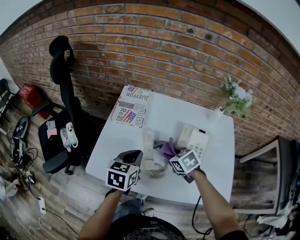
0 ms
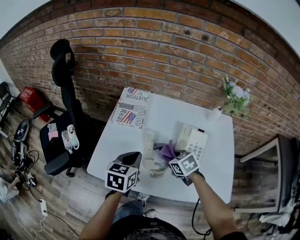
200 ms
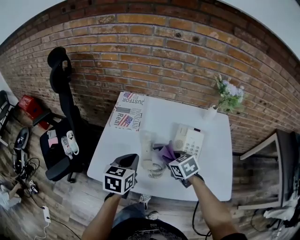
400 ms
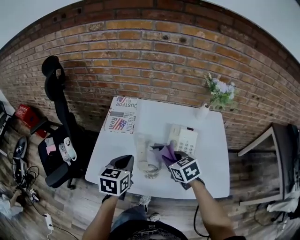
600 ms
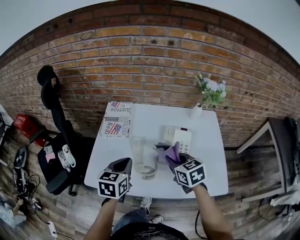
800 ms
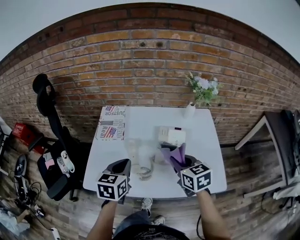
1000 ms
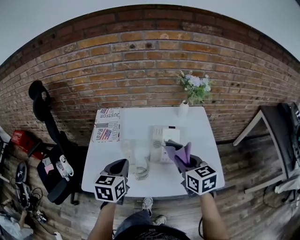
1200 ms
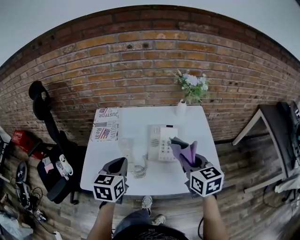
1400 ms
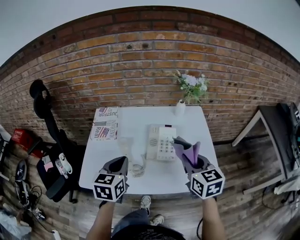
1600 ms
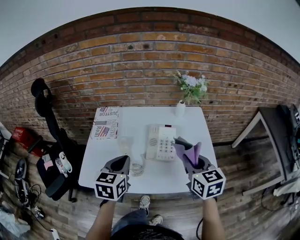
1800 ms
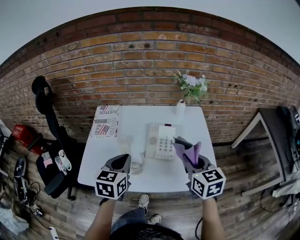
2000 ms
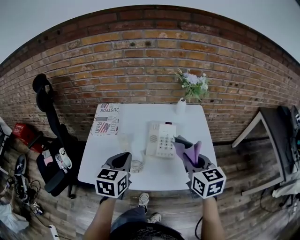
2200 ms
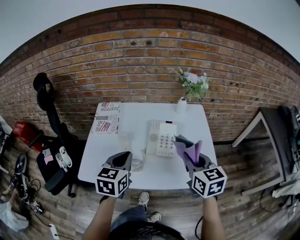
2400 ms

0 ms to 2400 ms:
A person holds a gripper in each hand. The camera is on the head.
0 ms to 1200 ms: The right gripper shifts some 25 cm upward, to the right and backward, and turns by some 40 degrees; the left gripper travels upward by some 5 cm.
1200 ms to 2400 ms: The right gripper moves to the right, some 5 cm. The left gripper ends up about 5 cm from where it was.

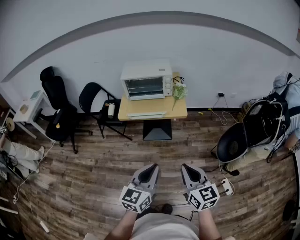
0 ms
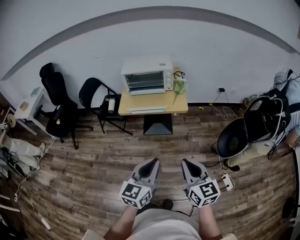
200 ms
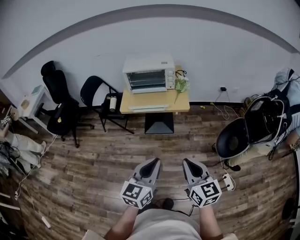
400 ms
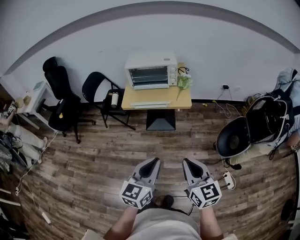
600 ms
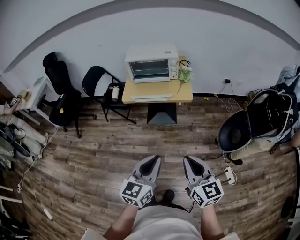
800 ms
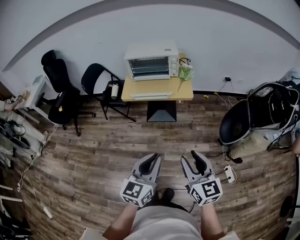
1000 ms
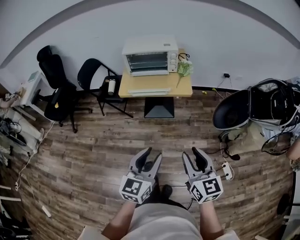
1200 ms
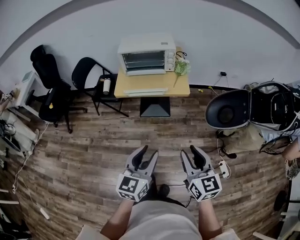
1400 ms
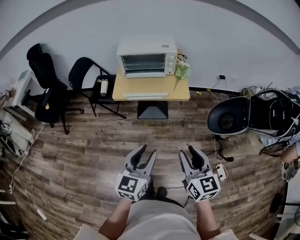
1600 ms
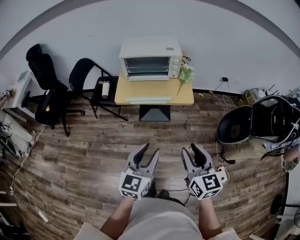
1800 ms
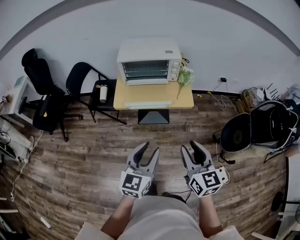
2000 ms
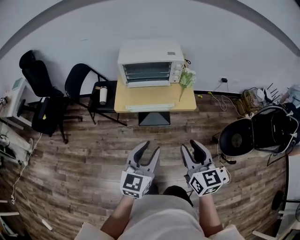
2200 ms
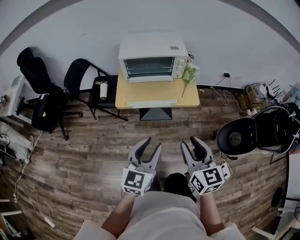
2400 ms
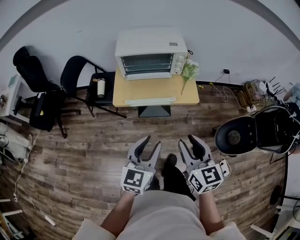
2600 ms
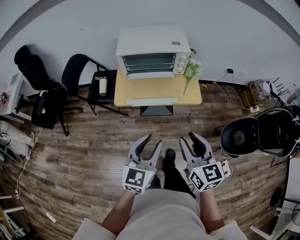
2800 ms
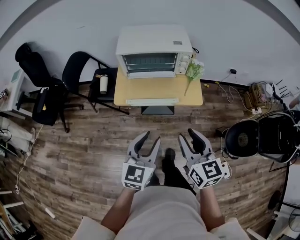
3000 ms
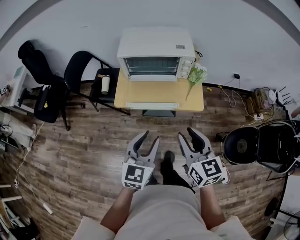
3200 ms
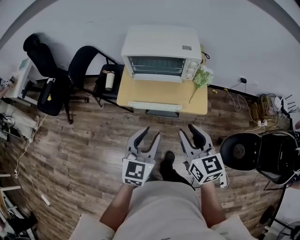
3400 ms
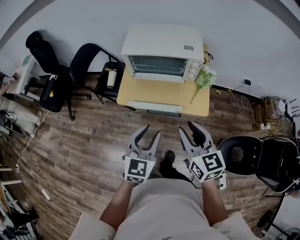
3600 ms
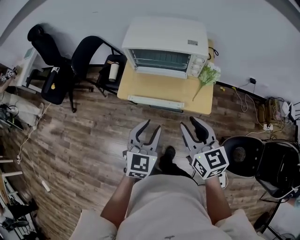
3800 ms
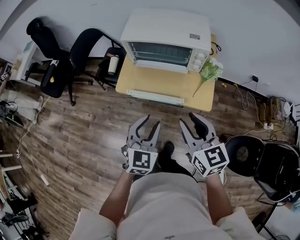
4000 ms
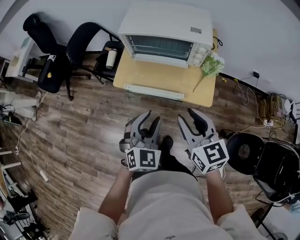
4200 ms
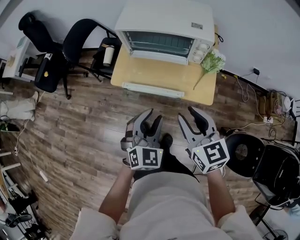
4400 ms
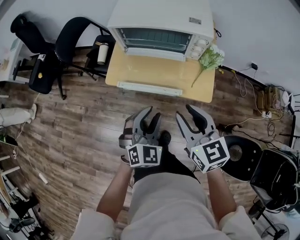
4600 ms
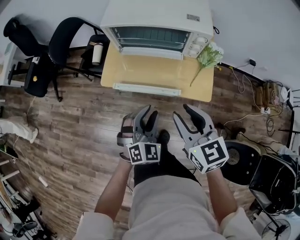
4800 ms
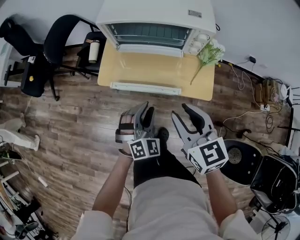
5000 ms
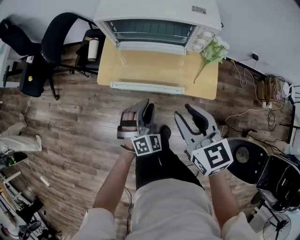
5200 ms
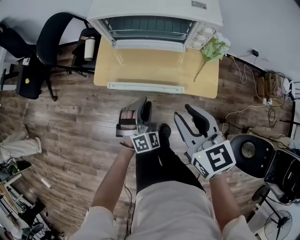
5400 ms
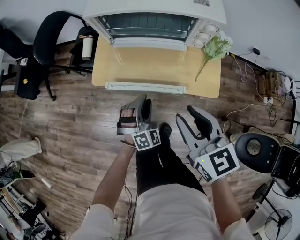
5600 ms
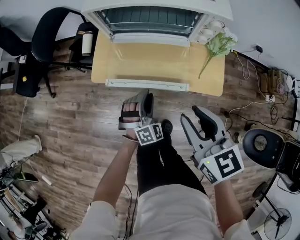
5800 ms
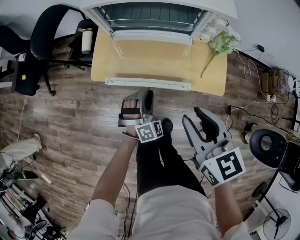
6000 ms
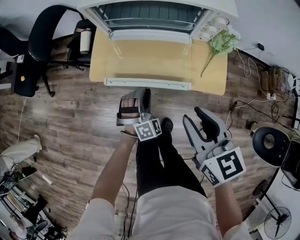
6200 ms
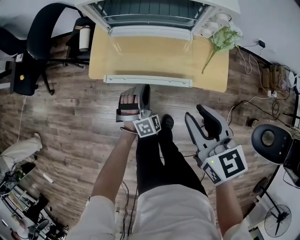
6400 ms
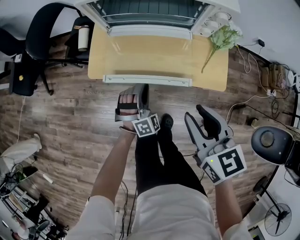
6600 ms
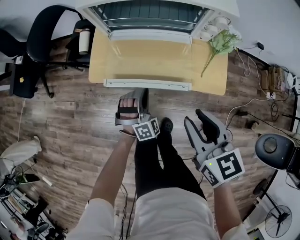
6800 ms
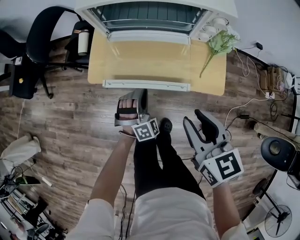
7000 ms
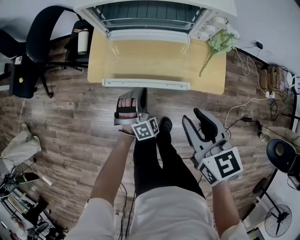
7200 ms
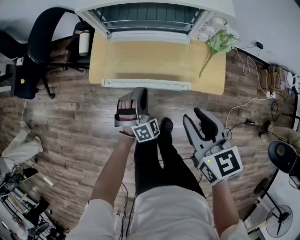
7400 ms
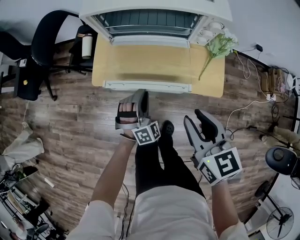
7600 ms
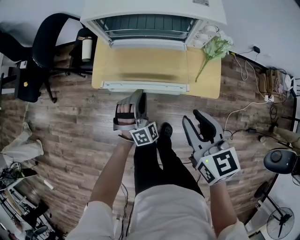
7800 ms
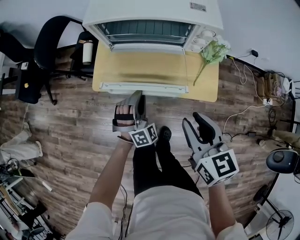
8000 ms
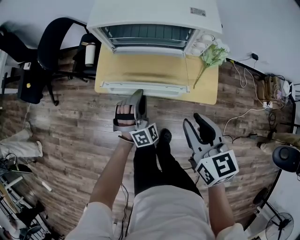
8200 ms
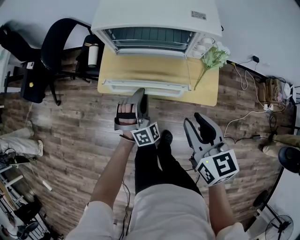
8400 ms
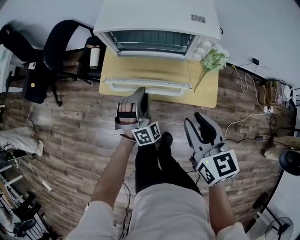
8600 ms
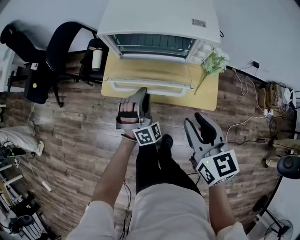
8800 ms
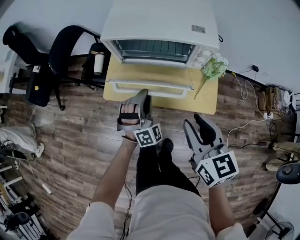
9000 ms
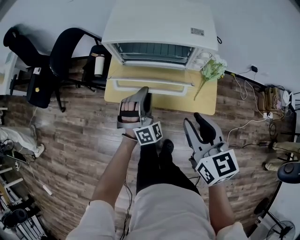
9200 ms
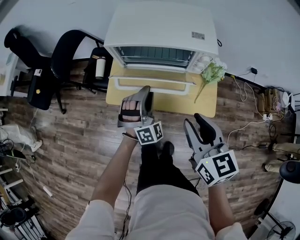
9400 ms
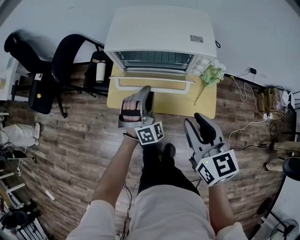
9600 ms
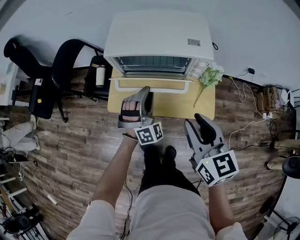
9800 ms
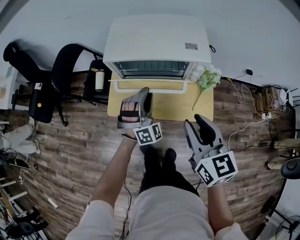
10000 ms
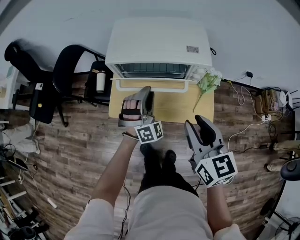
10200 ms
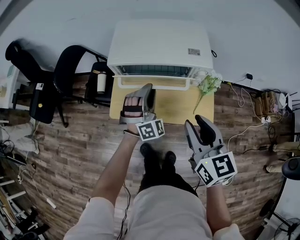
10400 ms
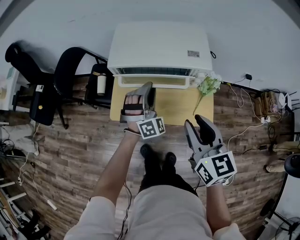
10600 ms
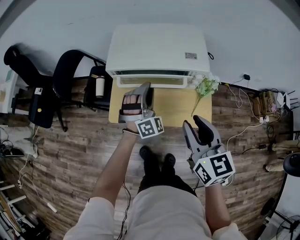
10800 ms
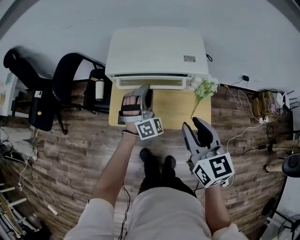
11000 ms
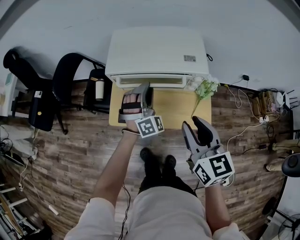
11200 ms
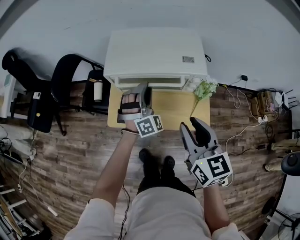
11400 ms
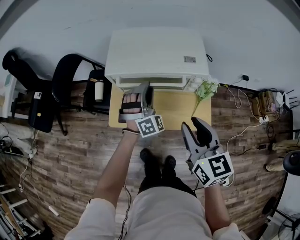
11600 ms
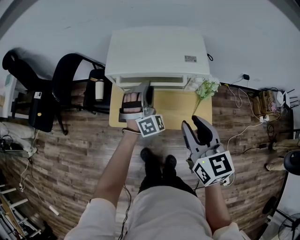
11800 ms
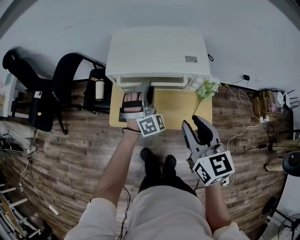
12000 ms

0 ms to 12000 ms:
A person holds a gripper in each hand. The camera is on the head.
0 ms to 1600 ms: The right gripper moves forward, some 10 cm, and opens its fingers, while the left gripper is displaced forward and to the left by approximately 10 cm, and opens.
1600 ms to 3000 ms: The grippers both shift forward by approximately 20 cm.
3000 ms to 4400 ms: The left gripper moves forward, downward and to the right, roughly 15 cm, and swivels roughly 30 degrees. Meanwhile the right gripper travels forward and downward by some 15 cm.
4400 ms to 6000 ms: The right gripper travels downward by roughly 10 cm; the left gripper travels downward and forward by some 25 cm, and turns by some 30 degrees.
6000 ms to 7600 ms: The grippers stay close to where they were, moving slightly.
7600 ms to 9000 ms: Both grippers travel together upward, about 10 cm.
9000 ms to 10400 ms: The left gripper shifts about 10 cm forward and upward, while the right gripper travels upward by roughly 5 cm.
10400 ms to 12000 ms: The grippers make only small movements.

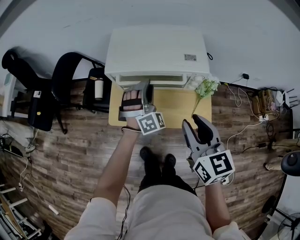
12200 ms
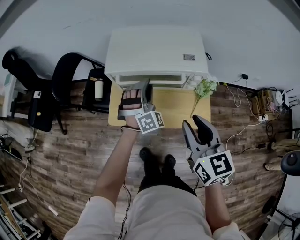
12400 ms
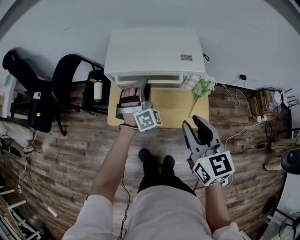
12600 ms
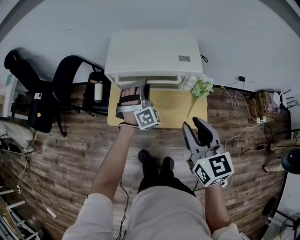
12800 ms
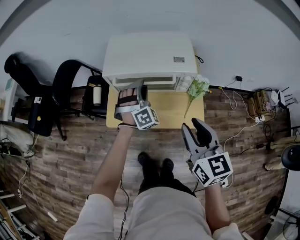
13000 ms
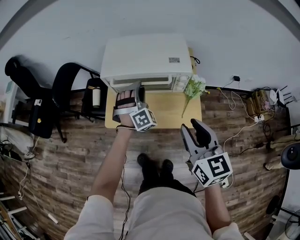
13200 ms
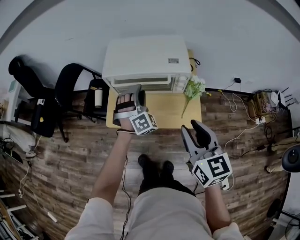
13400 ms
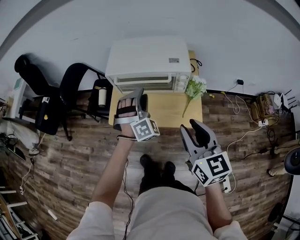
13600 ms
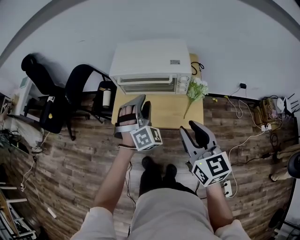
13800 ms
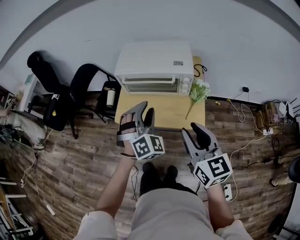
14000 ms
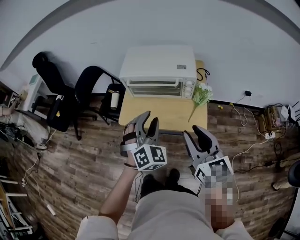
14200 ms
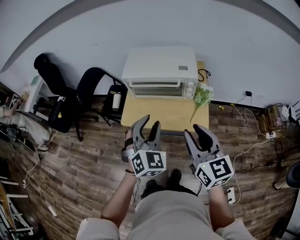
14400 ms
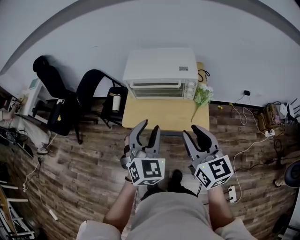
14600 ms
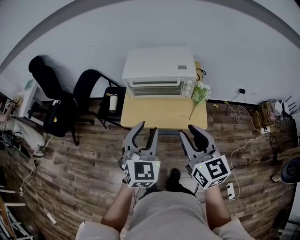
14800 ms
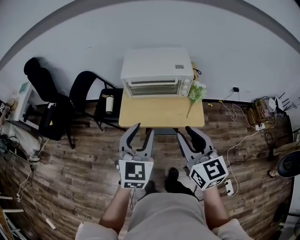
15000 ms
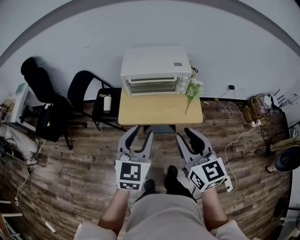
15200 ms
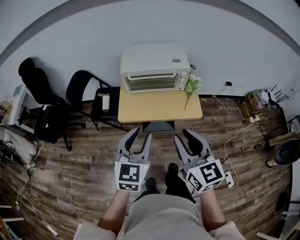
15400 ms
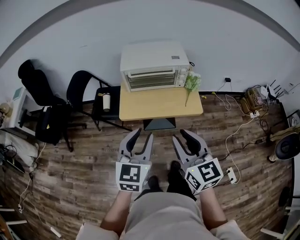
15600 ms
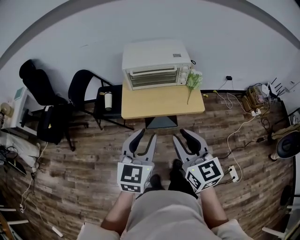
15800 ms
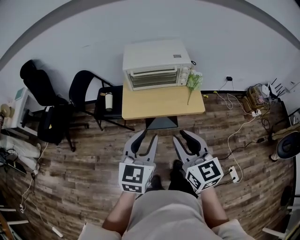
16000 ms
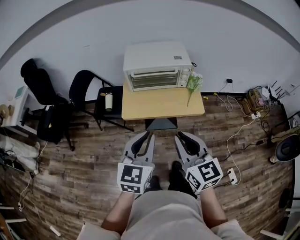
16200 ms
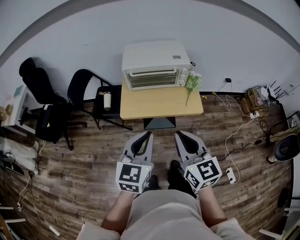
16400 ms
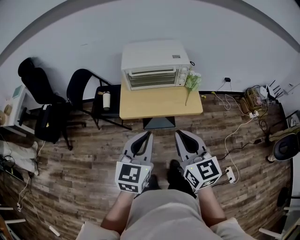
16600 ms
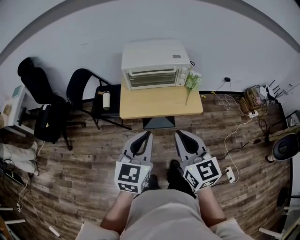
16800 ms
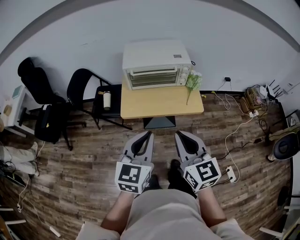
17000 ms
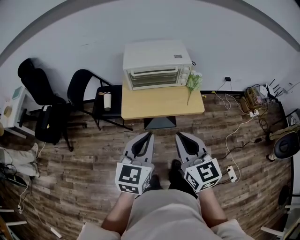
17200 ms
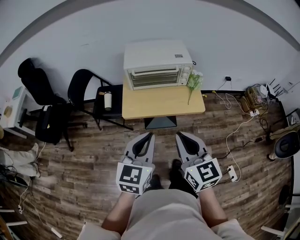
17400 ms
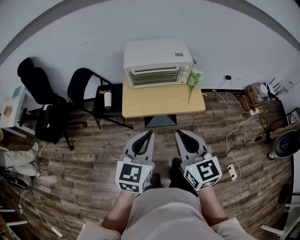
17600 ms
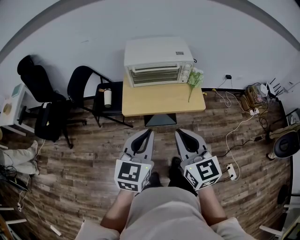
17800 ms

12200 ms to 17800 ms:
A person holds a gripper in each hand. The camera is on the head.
12200 ms to 13600 ms: The right gripper is displaced backward by roughly 10 cm. Meanwhile the left gripper heads backward and upward, covering about 10 cm.
13600 ms to 15000 ms: The left gripper is displaced backward, upward and to the left by roughly 25 cm, and rolls counterclockwise, seen from behind, by roughly 50 degrees; the right gripper shifts about 15 cm to the left, backward and upward.
15000 ms to 16400 ms: The left gripper heads backward, covering some 10 cm, and closes its fingers, while the right gripper moves backward and to the left, some 10 cm, and closes up.
16400 ms to 17800 ms: There are only small adjustments of the grippers.

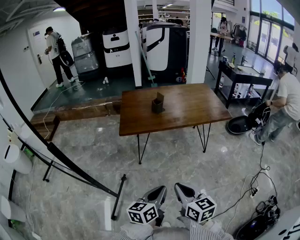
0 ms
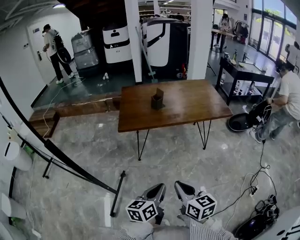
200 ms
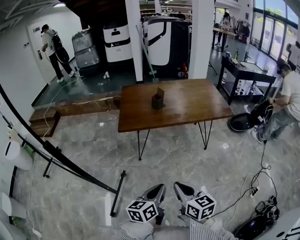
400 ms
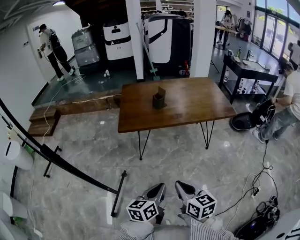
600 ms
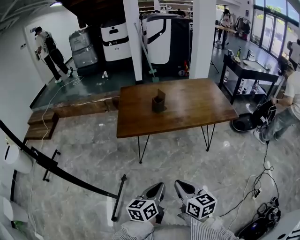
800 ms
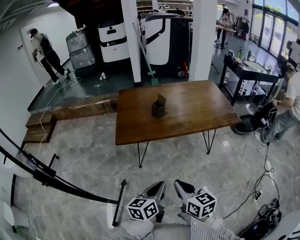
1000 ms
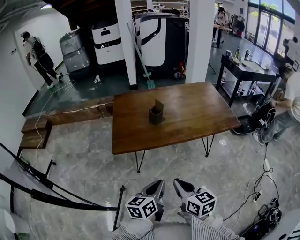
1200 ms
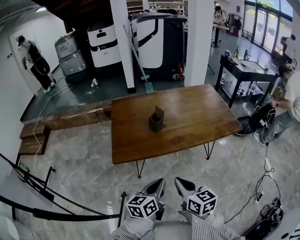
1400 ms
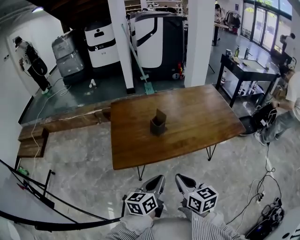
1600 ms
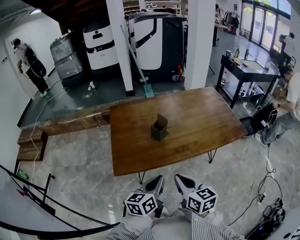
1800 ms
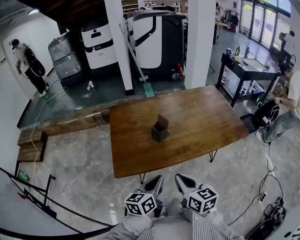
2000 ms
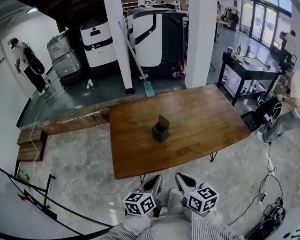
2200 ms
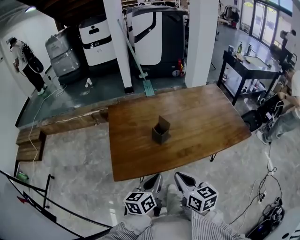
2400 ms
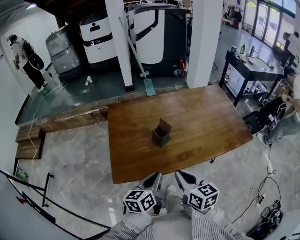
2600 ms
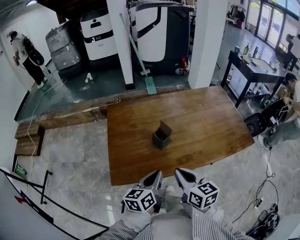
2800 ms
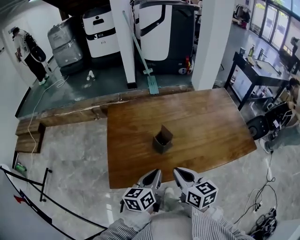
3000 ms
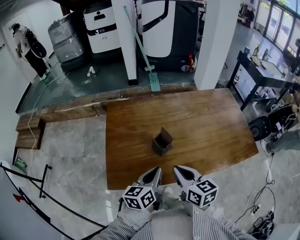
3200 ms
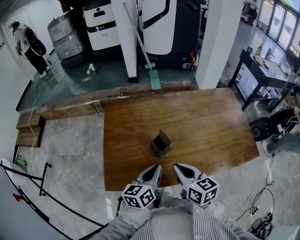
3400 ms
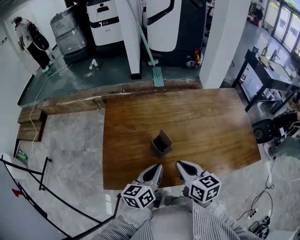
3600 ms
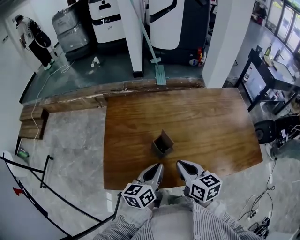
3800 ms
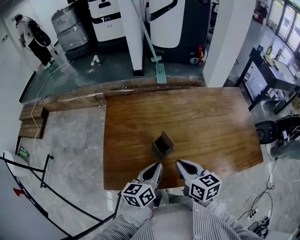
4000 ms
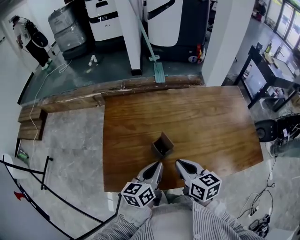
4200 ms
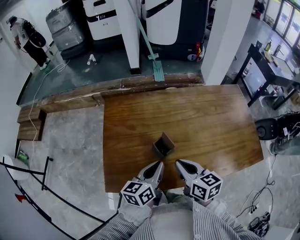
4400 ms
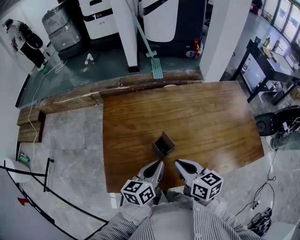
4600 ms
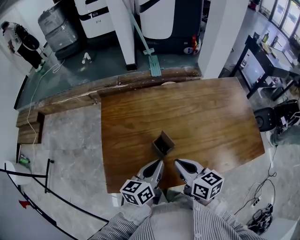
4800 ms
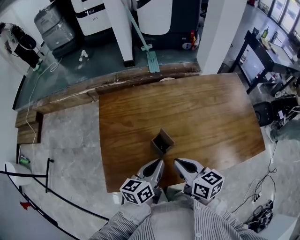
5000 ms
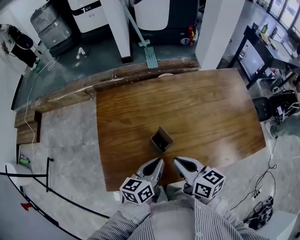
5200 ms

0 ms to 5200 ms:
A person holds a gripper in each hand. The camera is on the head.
0 ms to 1800 ms: Both grippers move forward, roughly 35 cm.
1800 ms to 3400 ms: The grippers both shift forward by roughly 20 cm.
3400 ms to 5200 ms: The left gripper shifts by about 5 cm.
